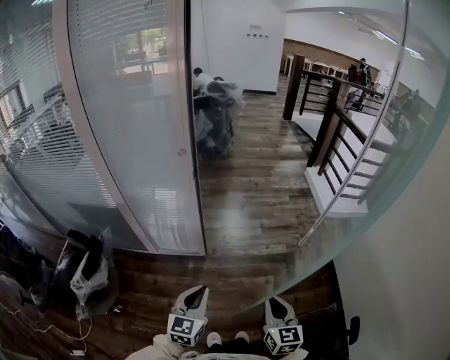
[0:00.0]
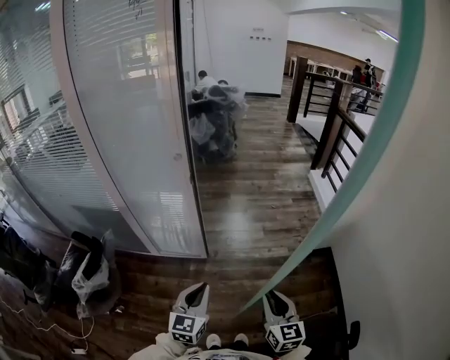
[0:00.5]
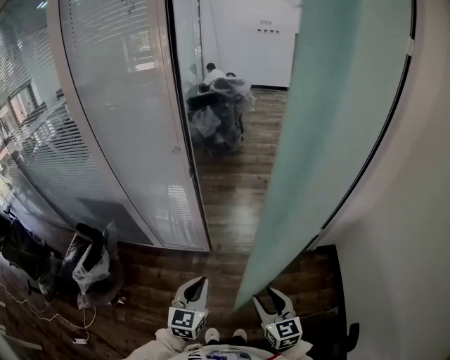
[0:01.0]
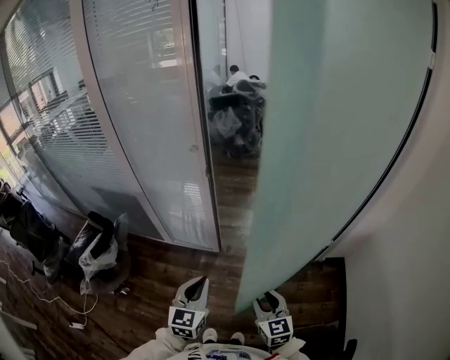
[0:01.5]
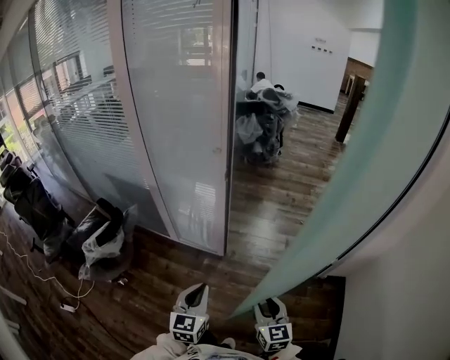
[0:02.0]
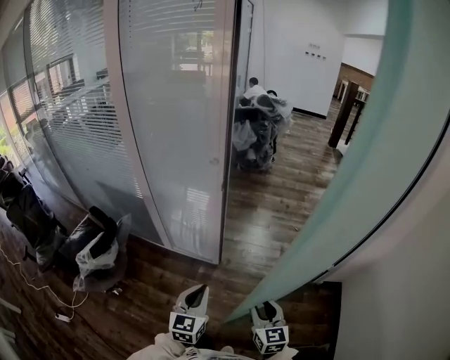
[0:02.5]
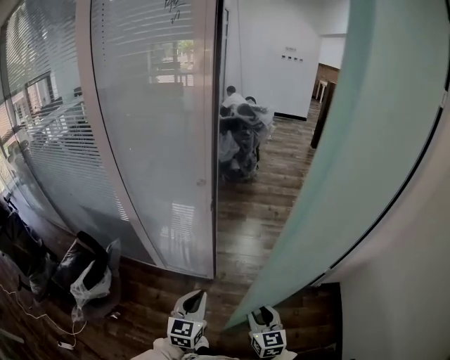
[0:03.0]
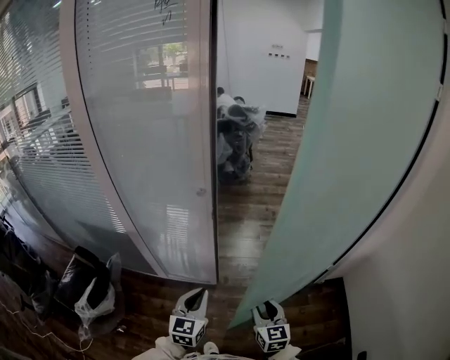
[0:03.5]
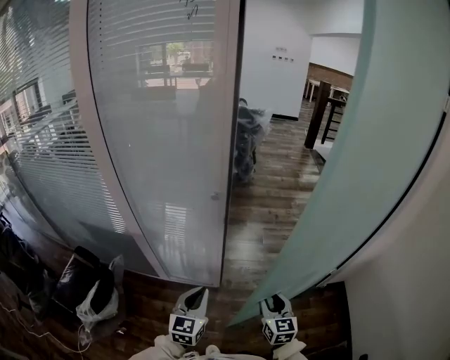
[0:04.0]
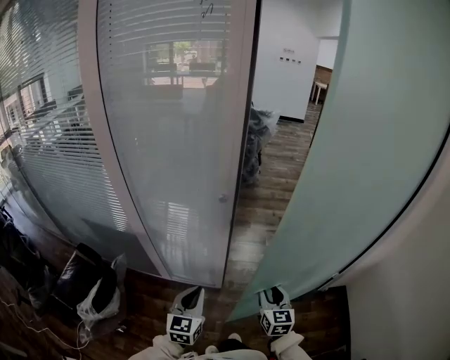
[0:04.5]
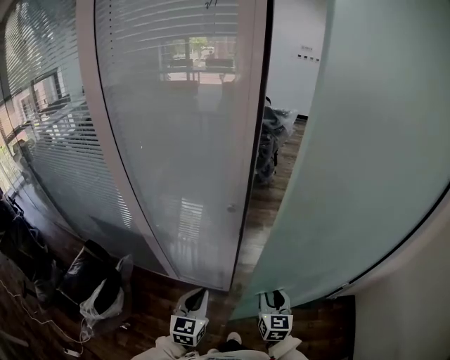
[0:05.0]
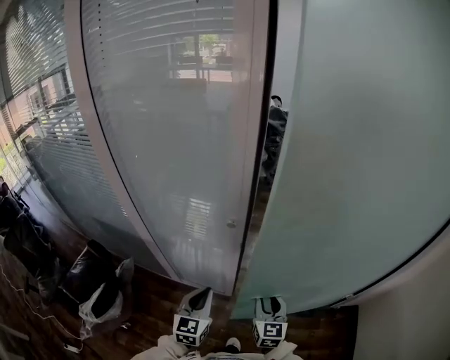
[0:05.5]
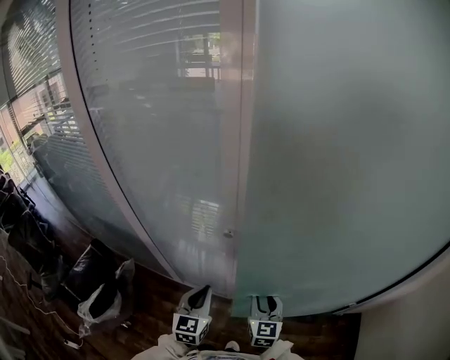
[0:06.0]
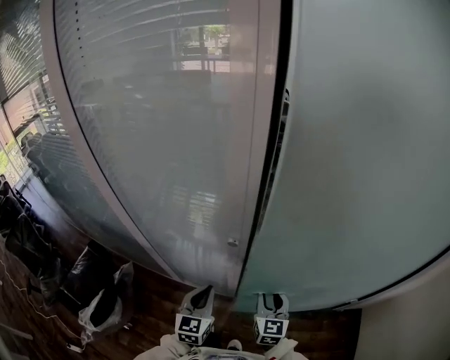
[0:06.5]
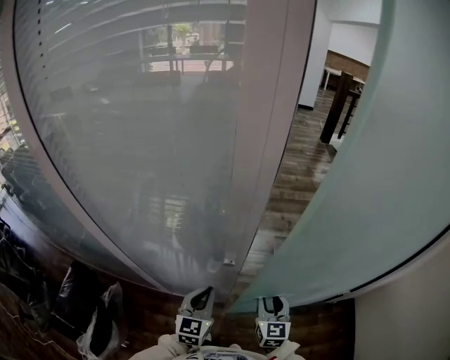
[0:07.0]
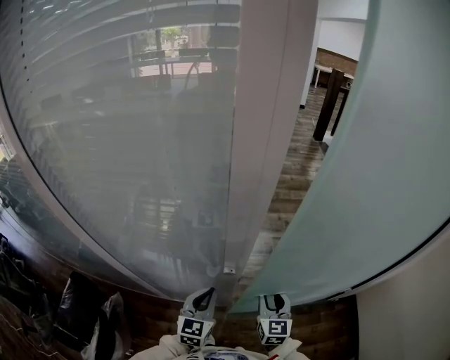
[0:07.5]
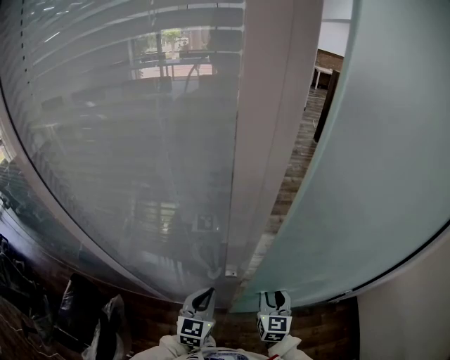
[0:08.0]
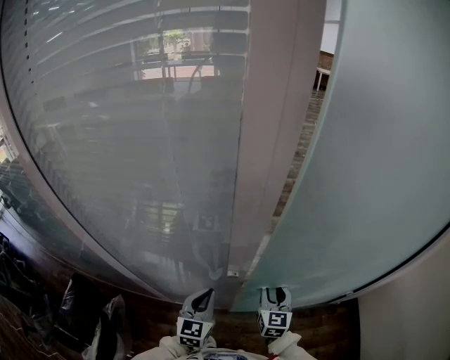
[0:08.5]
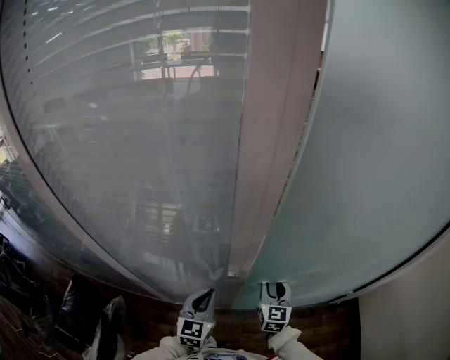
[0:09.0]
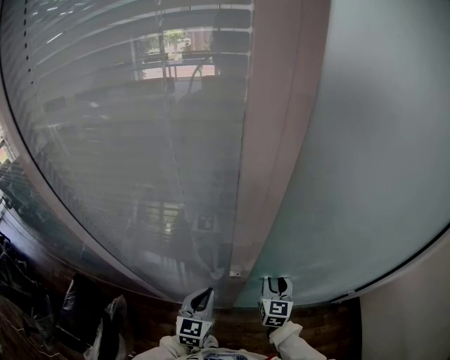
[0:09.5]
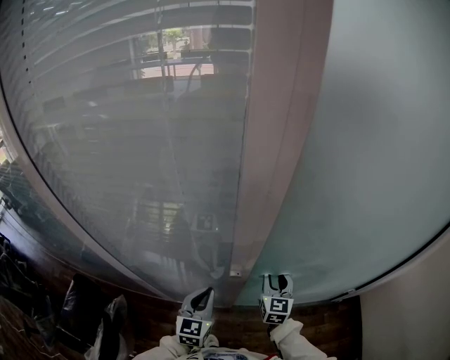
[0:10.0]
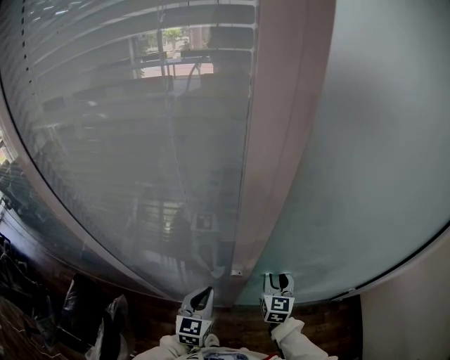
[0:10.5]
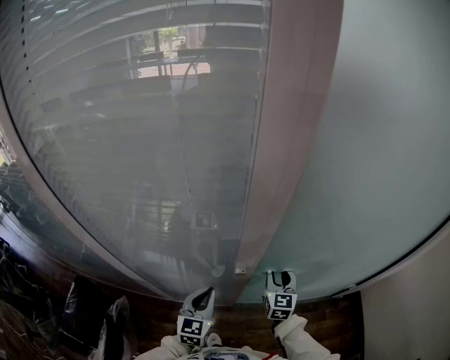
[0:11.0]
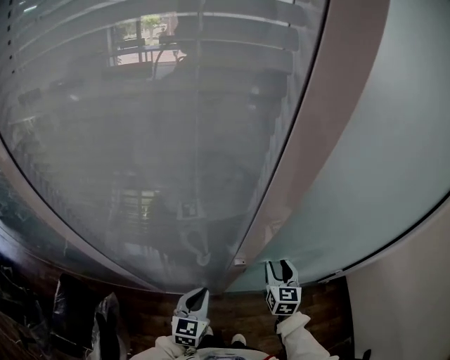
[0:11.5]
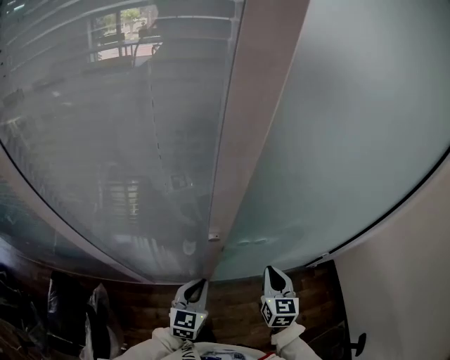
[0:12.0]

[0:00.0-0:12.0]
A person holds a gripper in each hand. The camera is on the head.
0:00.0 to 0:02.0: The left gripper changes its angle by approximately 20 degrees; the right gripper shifts approximately 5 cm forward, changes its angle by roughly 20 degrees, and opens.
0:02.0 to 0:04.0: The left gripper travels forward and to the left by approximately 20 cm. The right gripper heads forward, covering some 15 cm.
0:04.0 to 0:06.0: The grippers both shift forward by about 15 cm.
0:06.0 to 0:08.0: Both grippers travel together forward, some 10 cm.
0:08.0 to 0:10.0: The right gripper shifts some 5 cm forward.
0:10.0 to 0:12.0: The right gripper heads backward and to the right, covering about 15 cm, and closes its fingers. The left gripper heads to the right and backward, covering approximately 10 cm.

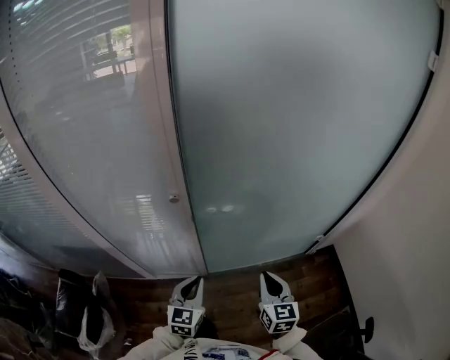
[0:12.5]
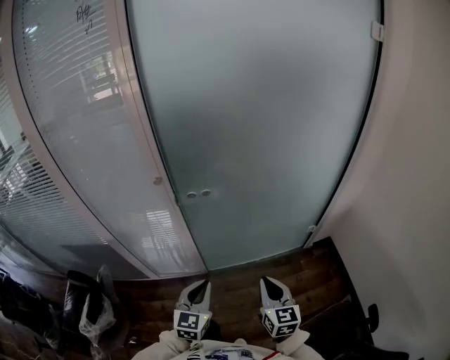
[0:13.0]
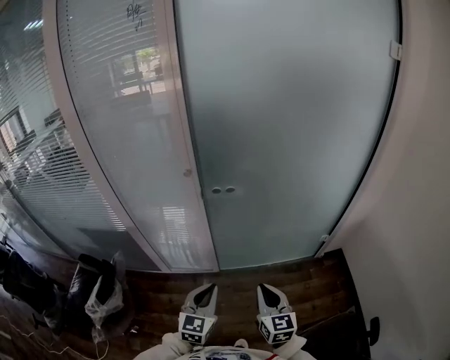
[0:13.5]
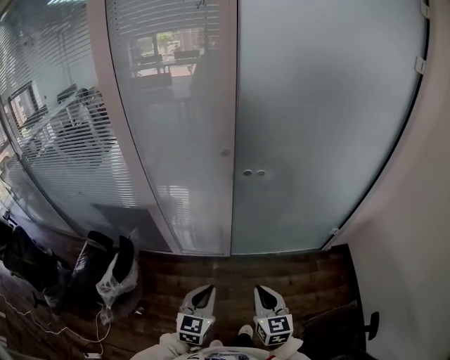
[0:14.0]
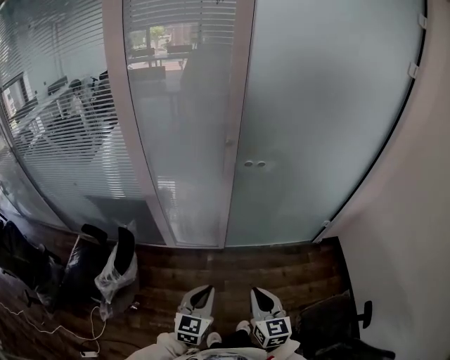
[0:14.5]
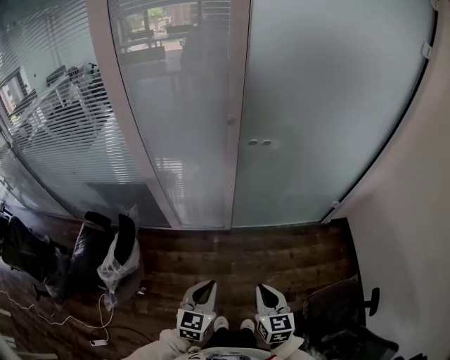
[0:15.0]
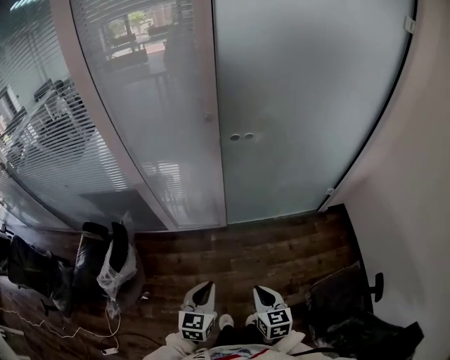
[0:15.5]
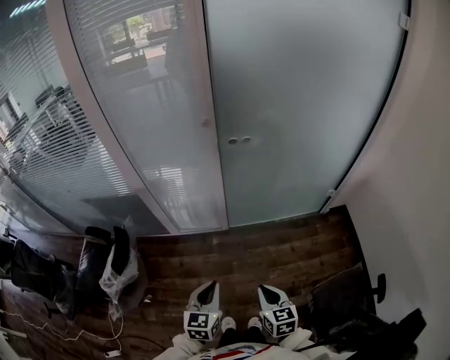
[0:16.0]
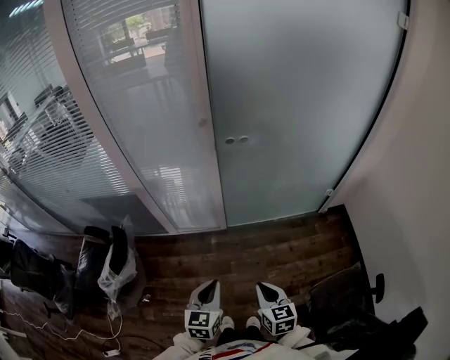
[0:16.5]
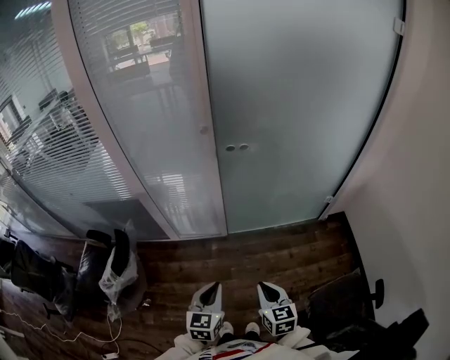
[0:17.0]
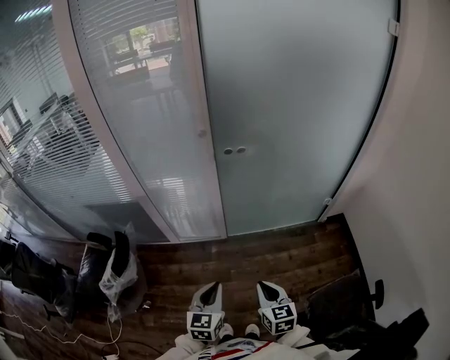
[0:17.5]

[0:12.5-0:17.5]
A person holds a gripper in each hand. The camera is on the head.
0:12.5 to 0:15.0: The grippers both shift backward by approximately 35 cm.
0:15.0 to 0:17.5: The two grippers go some 5 cm to the right.

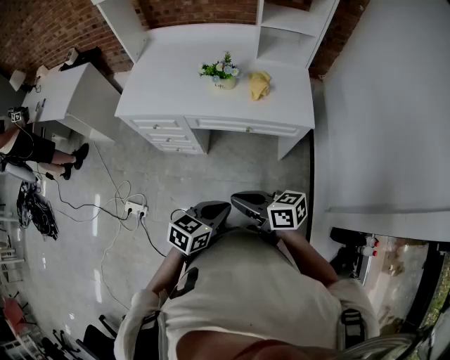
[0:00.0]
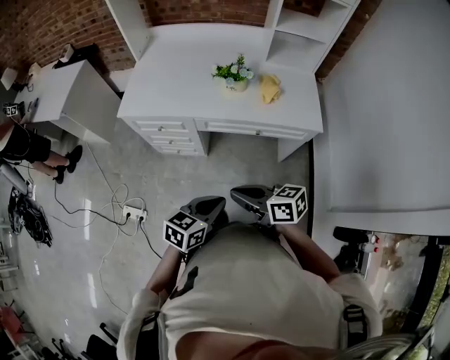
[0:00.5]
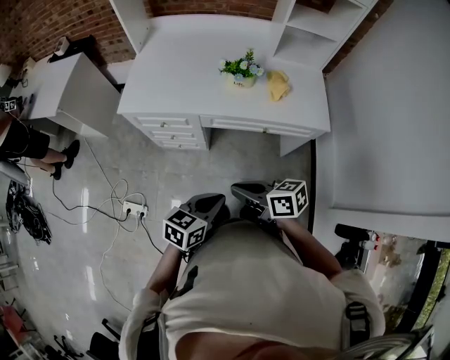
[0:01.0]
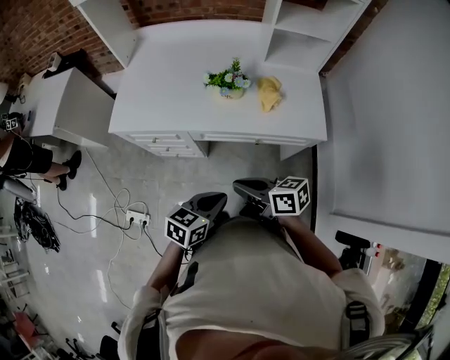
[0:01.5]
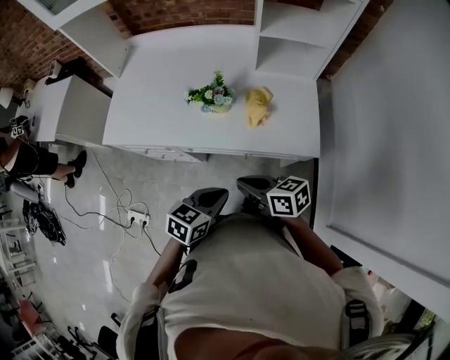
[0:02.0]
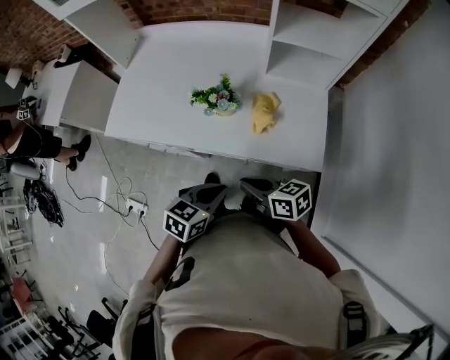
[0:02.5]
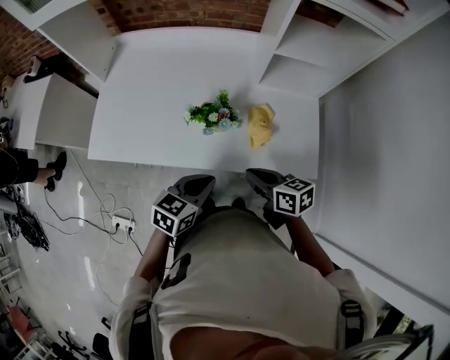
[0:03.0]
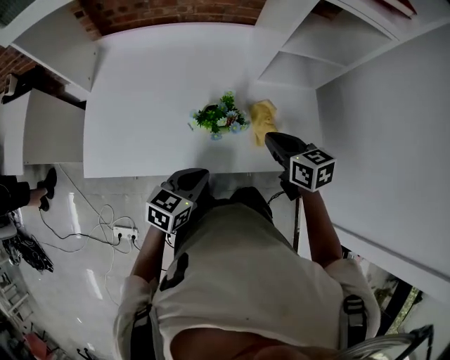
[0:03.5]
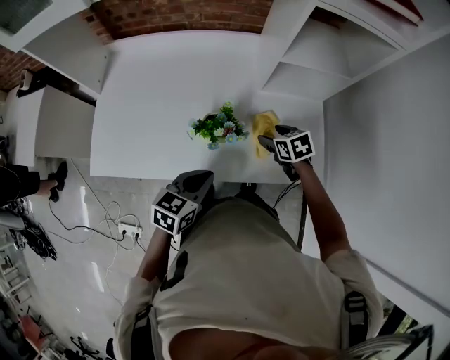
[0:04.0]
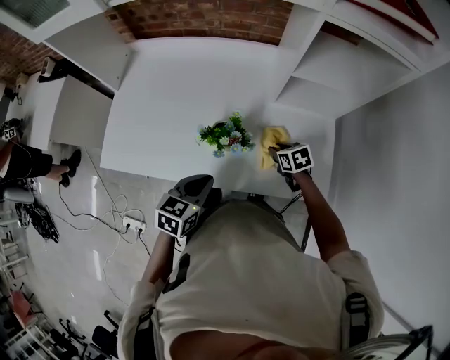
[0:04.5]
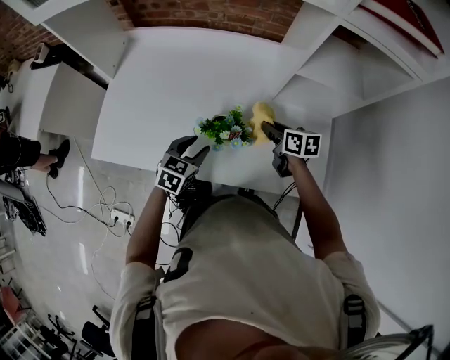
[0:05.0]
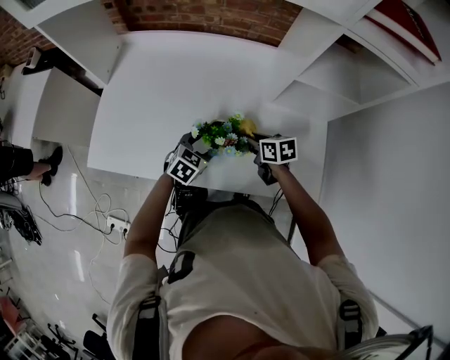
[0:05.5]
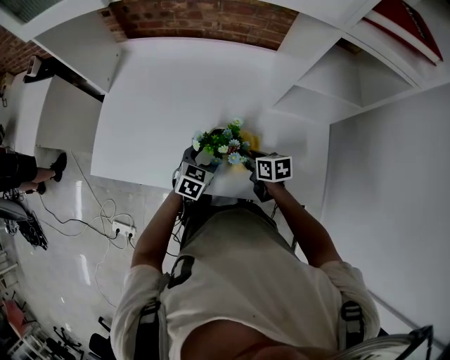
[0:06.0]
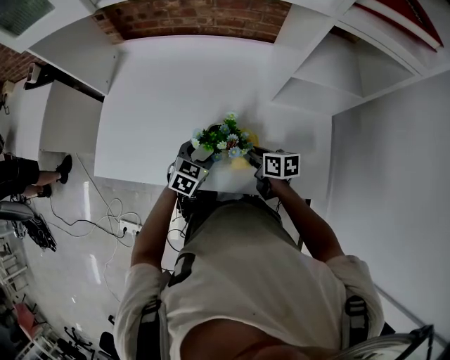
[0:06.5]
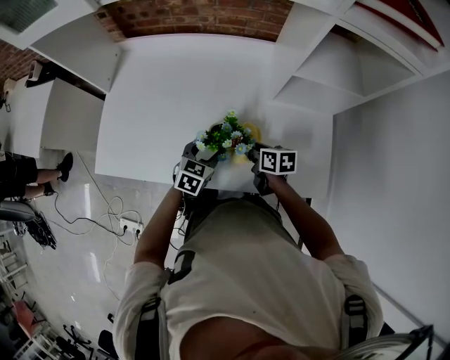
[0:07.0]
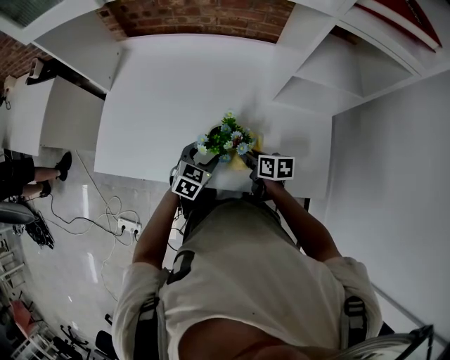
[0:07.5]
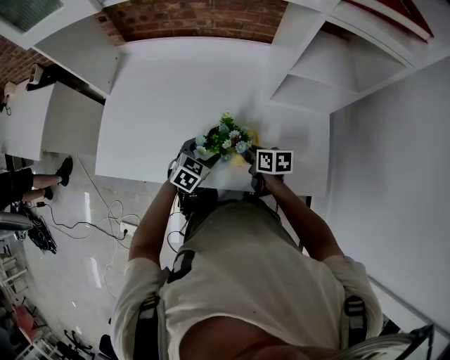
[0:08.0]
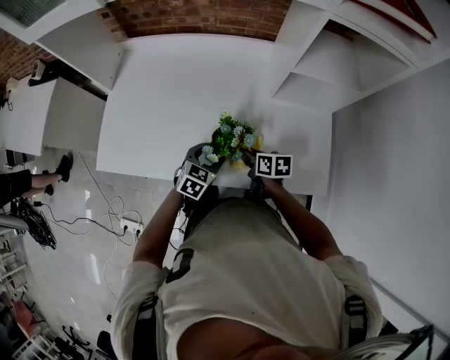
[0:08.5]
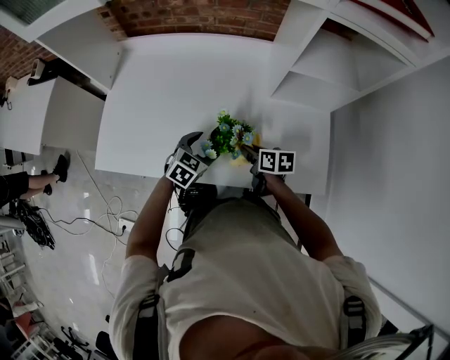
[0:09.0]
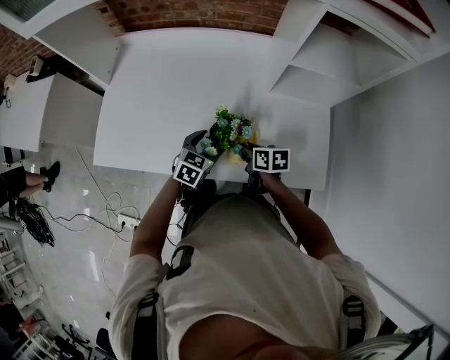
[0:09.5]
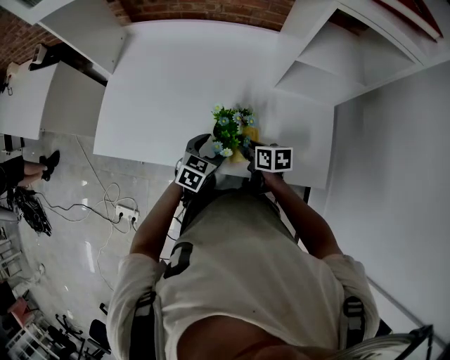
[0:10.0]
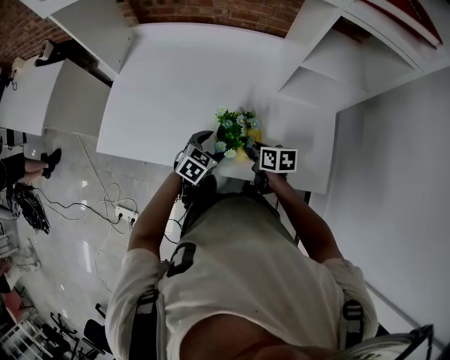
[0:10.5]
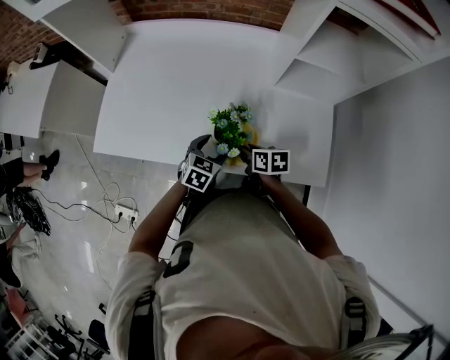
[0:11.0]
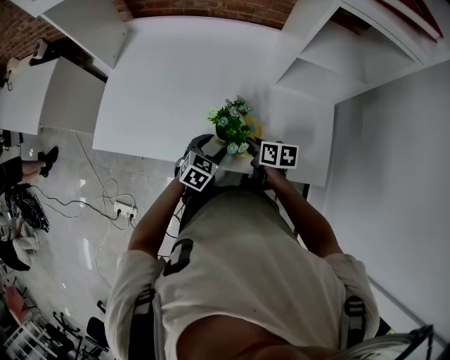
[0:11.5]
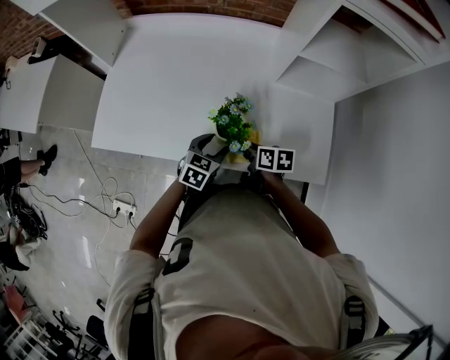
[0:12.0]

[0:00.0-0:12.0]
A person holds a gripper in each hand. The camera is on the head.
0:00.0 to 0:02.0: The grippers both shift forward by roughly 20 cm.
0:02.0 to 0:04.0: The left gripper is displaced forward and to the left by some 20 cm. The right gripper moves forward, some 30 cm, tips its fingers downward by about 30 degrees, and opens its fingers.
0:04.0 to 0:06.0: The right gripper heads to the left, covering roughly 10 cm, swivels approximately 20 degrees, and closes, while the left gripper goes some 15 cm forward and downward, and opens.
0:06.0 to 0:08.0: The grippers make only small movements.
0:08.0 to 0:10.0: The left gripper changes place by about 5 cm.
0:10.0 to 0:12.0: The grippers stay close to where they were, moving slightly.
